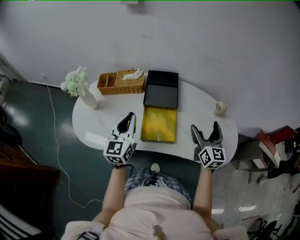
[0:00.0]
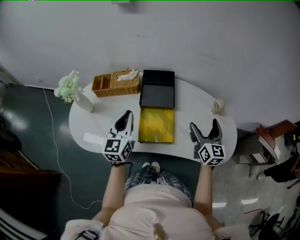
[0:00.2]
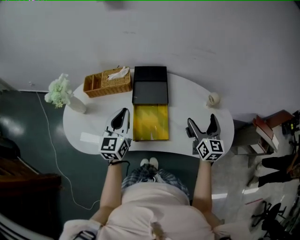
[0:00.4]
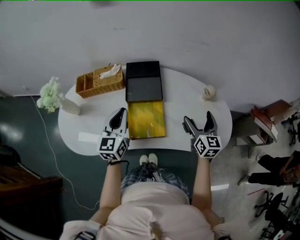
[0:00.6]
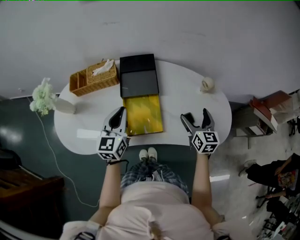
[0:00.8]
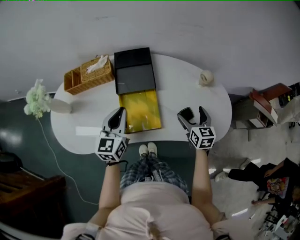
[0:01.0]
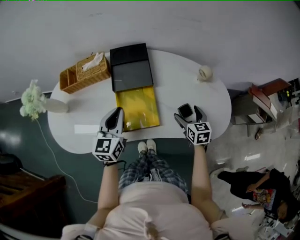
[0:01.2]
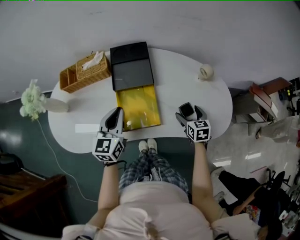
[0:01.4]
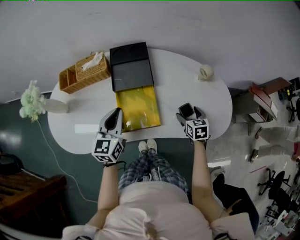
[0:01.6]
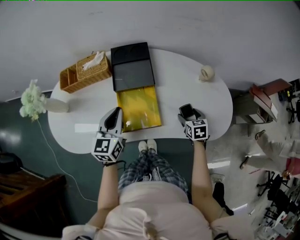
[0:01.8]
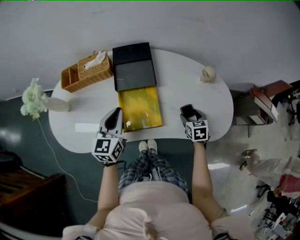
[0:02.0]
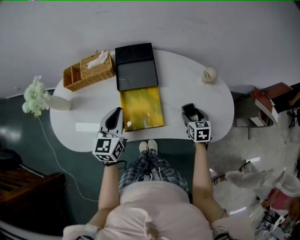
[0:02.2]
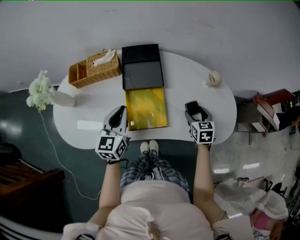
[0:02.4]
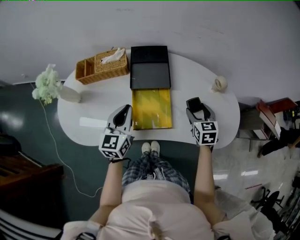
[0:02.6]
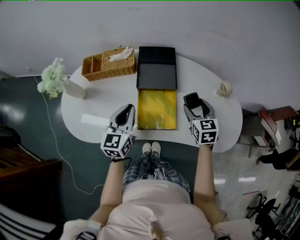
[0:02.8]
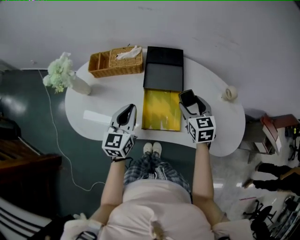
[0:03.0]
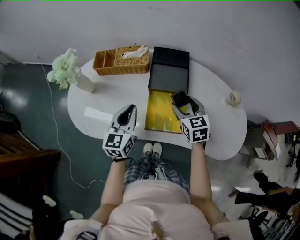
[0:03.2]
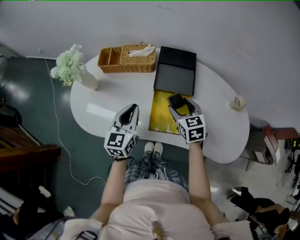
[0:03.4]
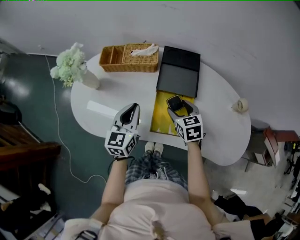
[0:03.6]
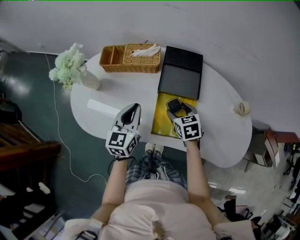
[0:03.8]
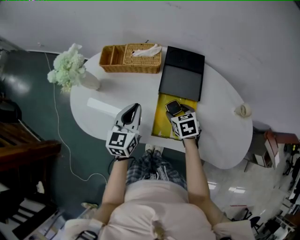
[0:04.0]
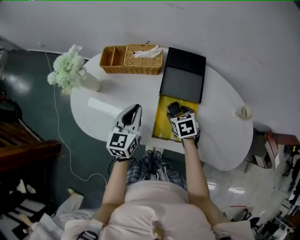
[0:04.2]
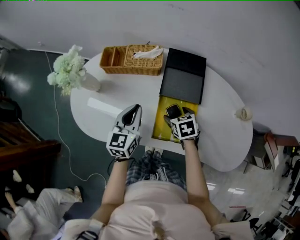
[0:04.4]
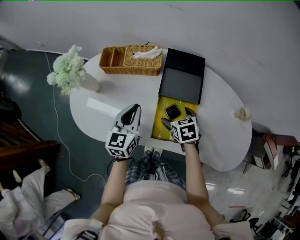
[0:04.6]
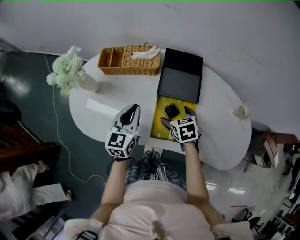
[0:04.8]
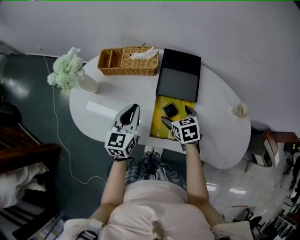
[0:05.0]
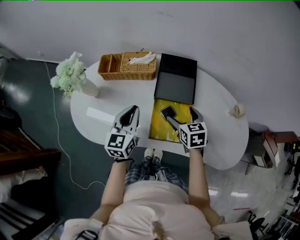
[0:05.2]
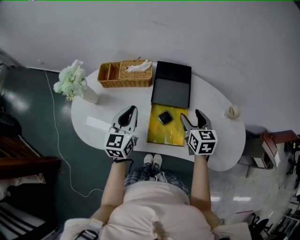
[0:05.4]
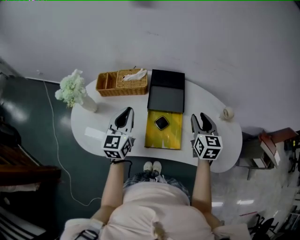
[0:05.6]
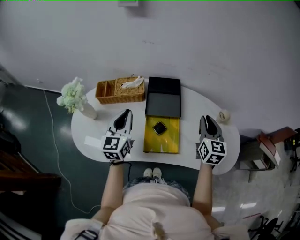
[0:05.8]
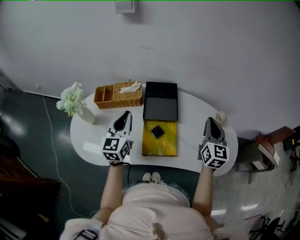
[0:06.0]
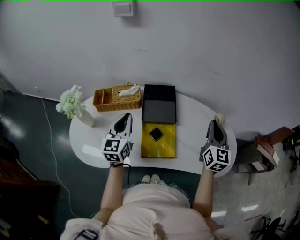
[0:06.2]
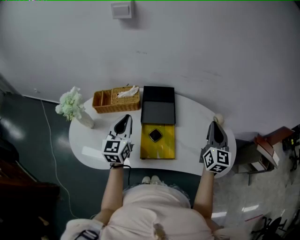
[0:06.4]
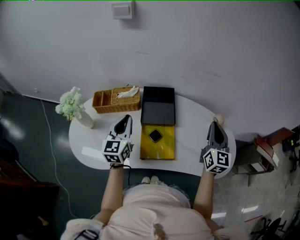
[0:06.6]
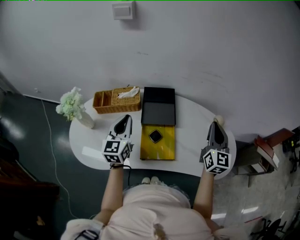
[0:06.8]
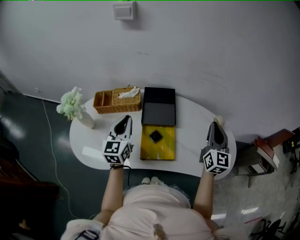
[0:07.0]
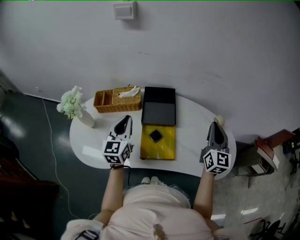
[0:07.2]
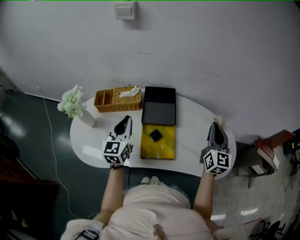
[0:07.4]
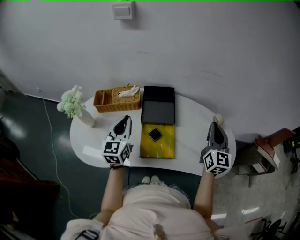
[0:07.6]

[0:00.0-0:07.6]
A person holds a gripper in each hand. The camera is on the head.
0:00.0 to 0:01.6: The left gripper shifts approximately 10 cm downward and to the right. Meanwhile the right gripper is displaced downward by approximately 20 cm, and points its fingers some 40 degrees further downward.
0:01.6 to 0:03.0: The left gripper shifts approximately 5 cm to the left. Meanwhile the right gripper shifts approximately 20 cm to the left, upward and forward, and swivels about 20 degrees.
0:03.0 to 0:04.6: The left gripper moves forward, some 5 cm, while the right gripper travels to the left and downward by approximately 15 cm, rotates roughly 30 degrees, and opens.
0:04.6 to 0:06.0: The left gripper goes approximately 10 cm upward; the right gripper shifts some 35 cm upward and to the right, angles its fingers upward, by some 50 degrees, and closes up.
0:06.0 to 0:07.6: The grippers stay close to where they were, moving slightly.

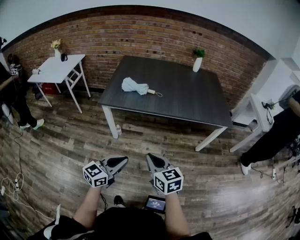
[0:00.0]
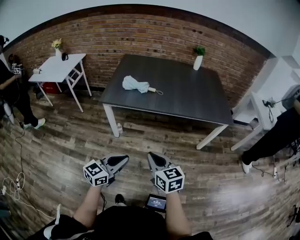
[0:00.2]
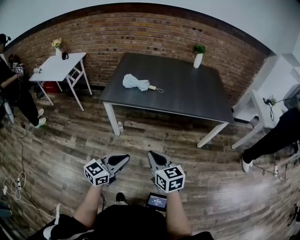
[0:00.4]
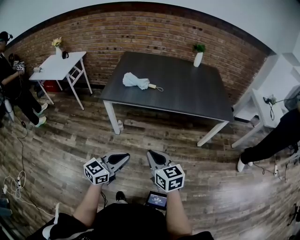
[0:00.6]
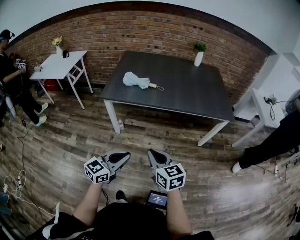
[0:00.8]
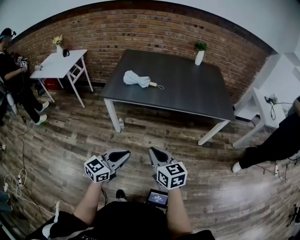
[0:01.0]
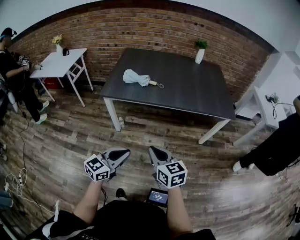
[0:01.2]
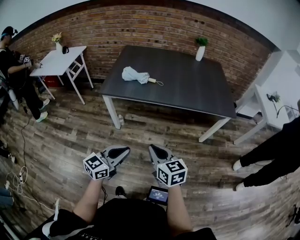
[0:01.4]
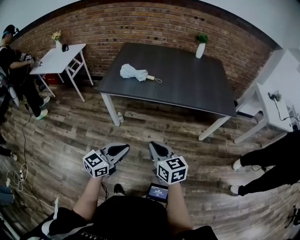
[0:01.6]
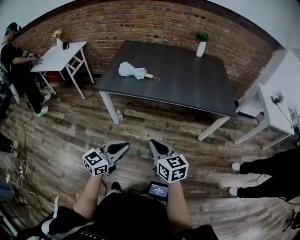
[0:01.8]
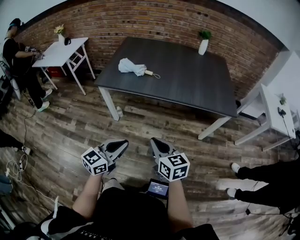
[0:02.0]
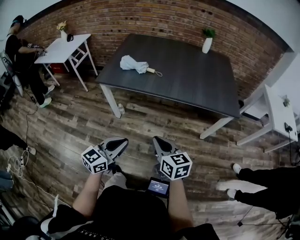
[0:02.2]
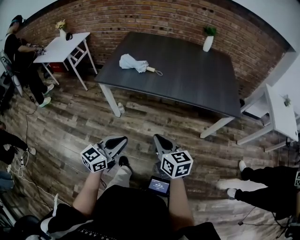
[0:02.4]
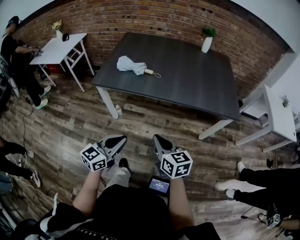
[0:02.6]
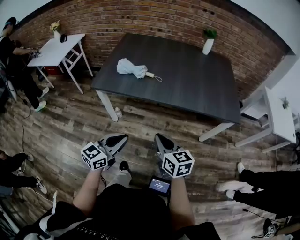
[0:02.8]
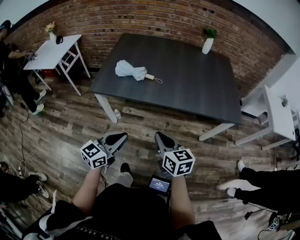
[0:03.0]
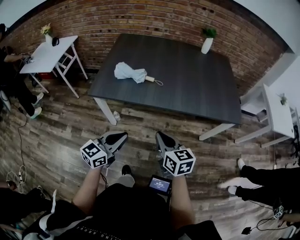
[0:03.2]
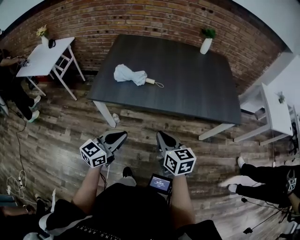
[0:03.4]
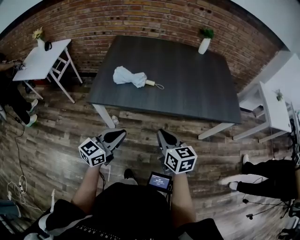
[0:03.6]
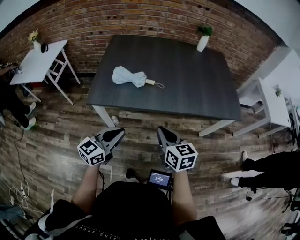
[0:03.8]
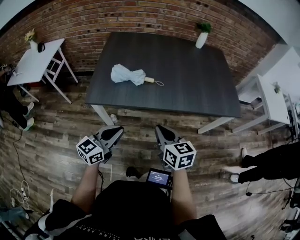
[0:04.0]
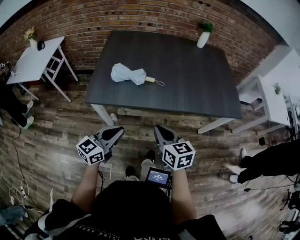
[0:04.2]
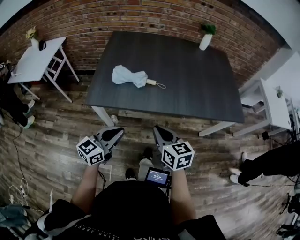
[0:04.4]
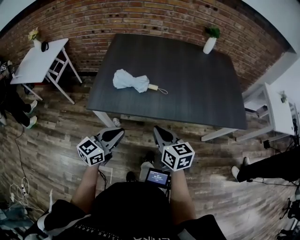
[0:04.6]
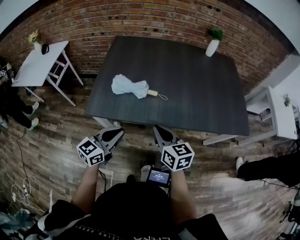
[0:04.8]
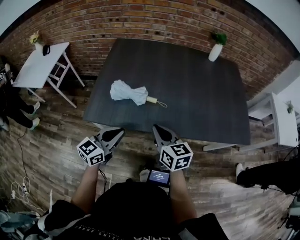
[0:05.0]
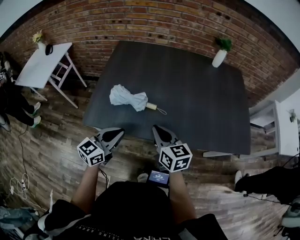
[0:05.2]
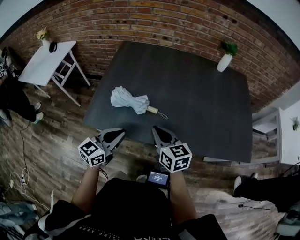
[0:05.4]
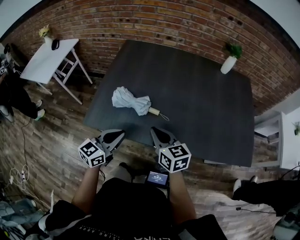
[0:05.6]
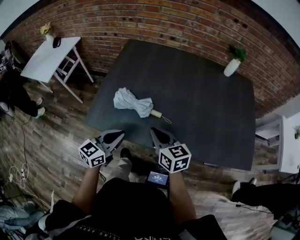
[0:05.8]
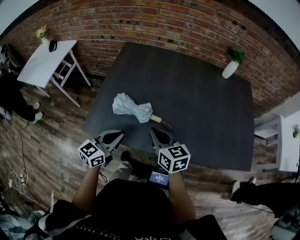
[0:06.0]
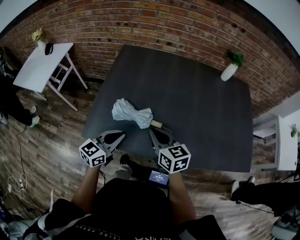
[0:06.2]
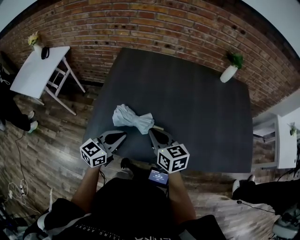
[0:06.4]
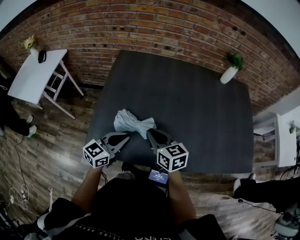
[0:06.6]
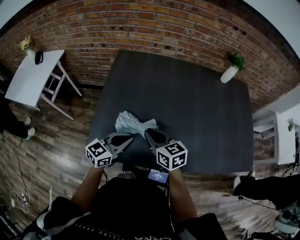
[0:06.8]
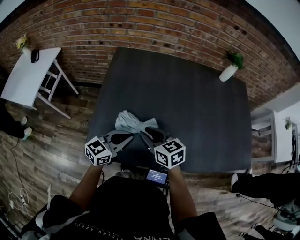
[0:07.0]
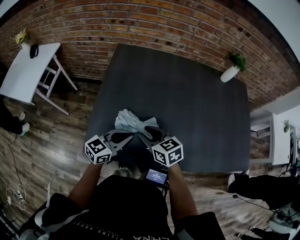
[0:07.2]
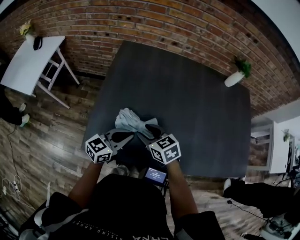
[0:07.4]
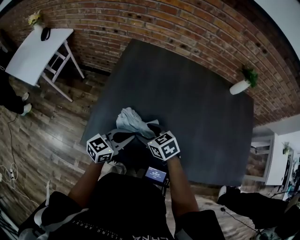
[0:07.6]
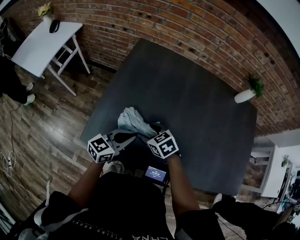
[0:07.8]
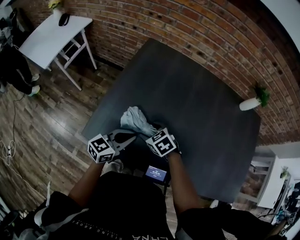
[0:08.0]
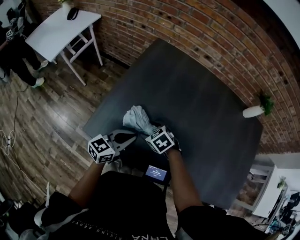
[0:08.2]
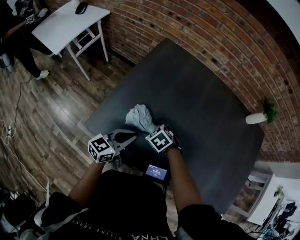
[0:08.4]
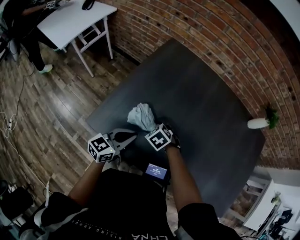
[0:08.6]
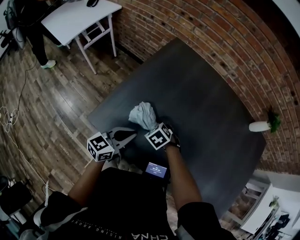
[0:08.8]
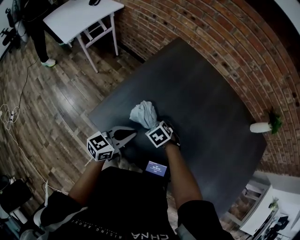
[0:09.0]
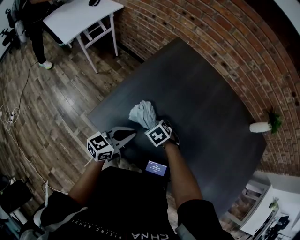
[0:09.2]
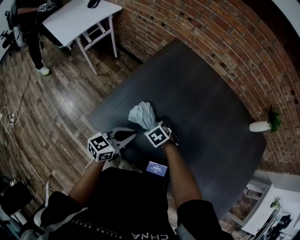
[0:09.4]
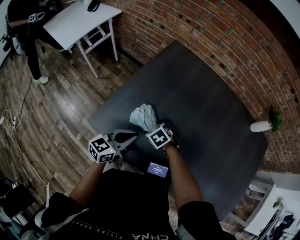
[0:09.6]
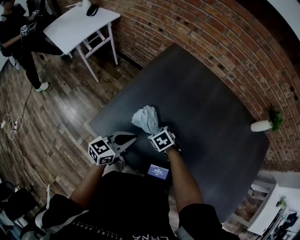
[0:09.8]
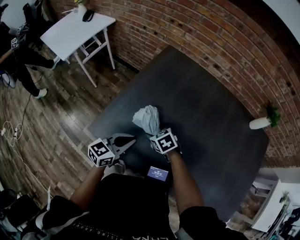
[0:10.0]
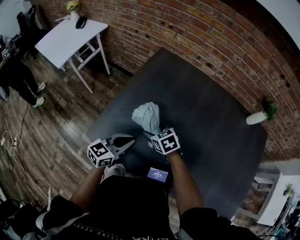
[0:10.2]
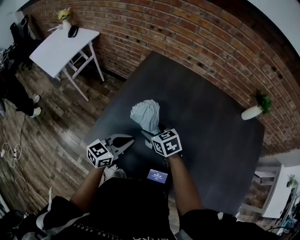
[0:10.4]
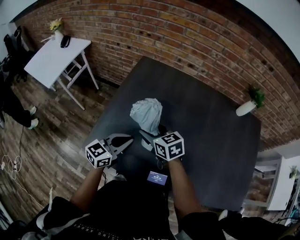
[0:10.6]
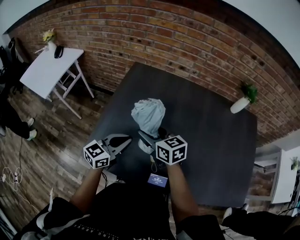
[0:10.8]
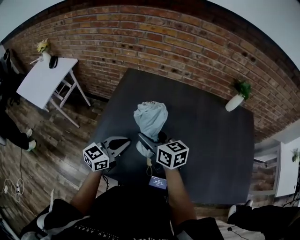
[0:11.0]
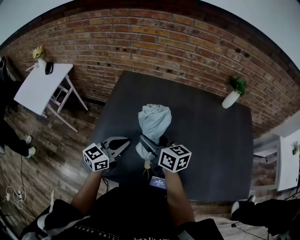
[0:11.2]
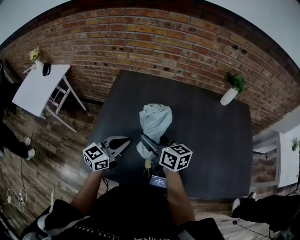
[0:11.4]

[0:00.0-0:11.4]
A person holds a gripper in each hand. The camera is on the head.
0:00.0 to 0:01.4: The grippers move only a little.
0:01.4 to 0:02.8: The left gripper shifts some 15 cm forward, while the right gripper heads forward and to the right, covering roughly 15 cm.
0:02.8 to 0:04.2: The two grippers go approximately 20 cm to the left and forward.
0:04.2 to 0:05.6: Both grippers move forward, about 20 cm.
0:05.6 to 0:07.2: The left gripper is displaced forward and to the left by some 15 cm, while the right gripper shifts some 20 cm to the left and forward, and opens.
0:07.2 to 0:08.6: The left gripper swivels approximately 30 degrees. Meanwhile the right gripper goes approximately 15 cm downward, tips its fingers downward by about 40 degrees, and opens up.
0:08.6 to 0:10.0: There are only small adjustments of the grippers.
0:10.0 to 0:11.4: The left gripper goes about 15 cm upward, to the right and forward, while the right gripper heads upward and to the right, covering about 25 cm, and points its fingers some 50 degrees further upward.

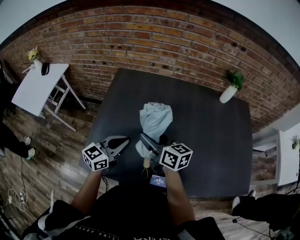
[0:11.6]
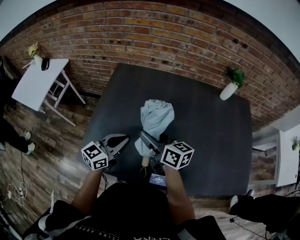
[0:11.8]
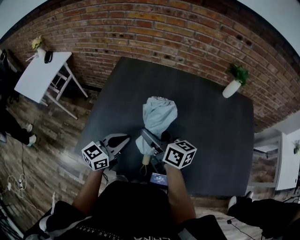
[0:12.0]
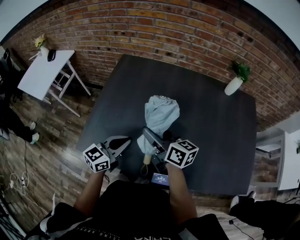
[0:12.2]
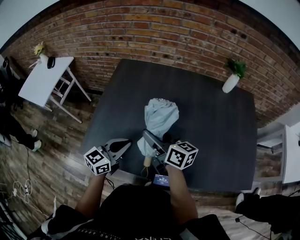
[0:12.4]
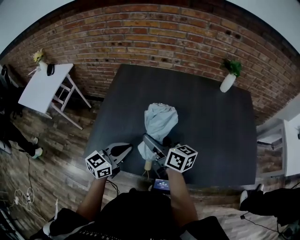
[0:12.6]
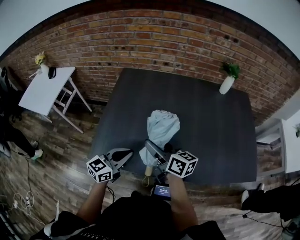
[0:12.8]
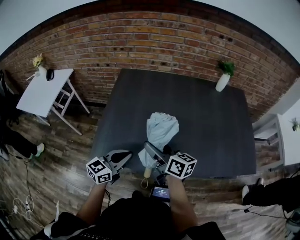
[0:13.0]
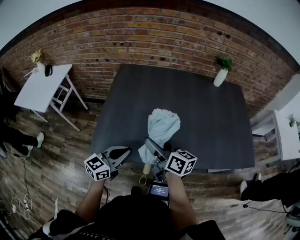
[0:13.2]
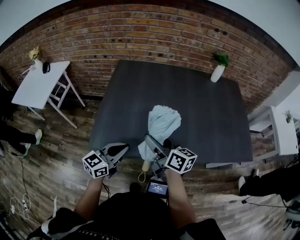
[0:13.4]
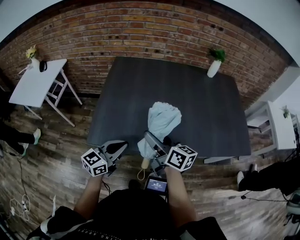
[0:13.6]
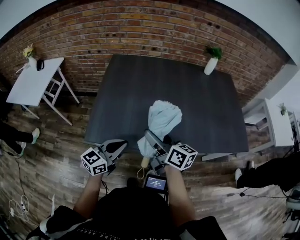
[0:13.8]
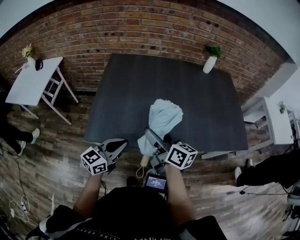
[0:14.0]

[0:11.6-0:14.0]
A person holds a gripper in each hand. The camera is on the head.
0:11.6 to 0:12.8: The grippers both shift backward by roughly 10 cm.
0:12.8 to 0:14.0: The grippers both shift backward by roughly 10 cm.

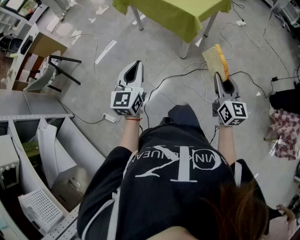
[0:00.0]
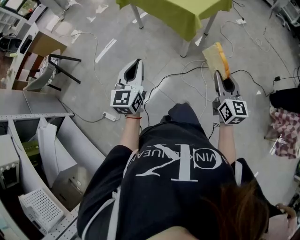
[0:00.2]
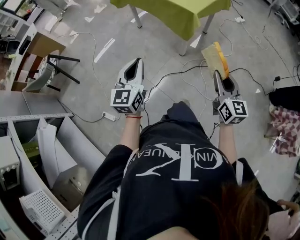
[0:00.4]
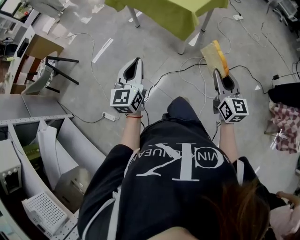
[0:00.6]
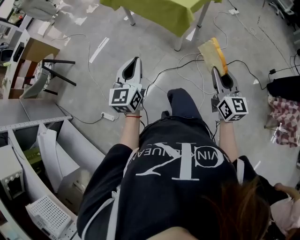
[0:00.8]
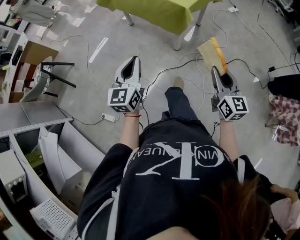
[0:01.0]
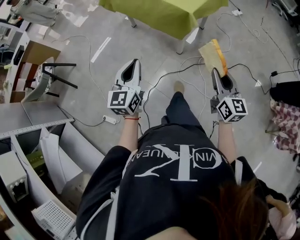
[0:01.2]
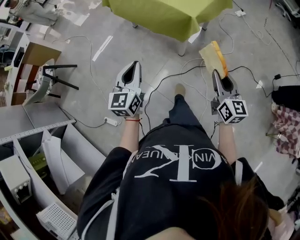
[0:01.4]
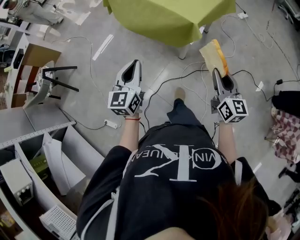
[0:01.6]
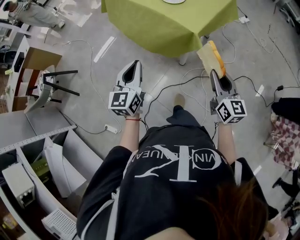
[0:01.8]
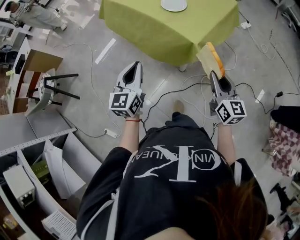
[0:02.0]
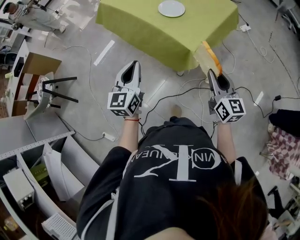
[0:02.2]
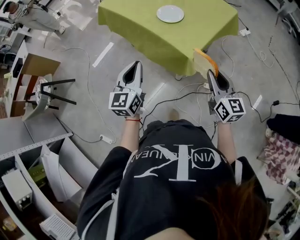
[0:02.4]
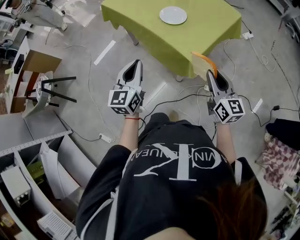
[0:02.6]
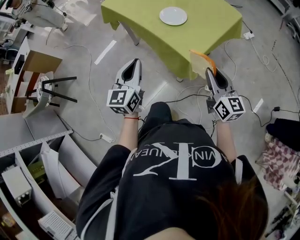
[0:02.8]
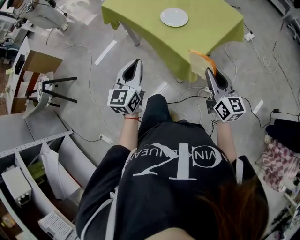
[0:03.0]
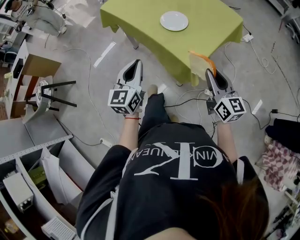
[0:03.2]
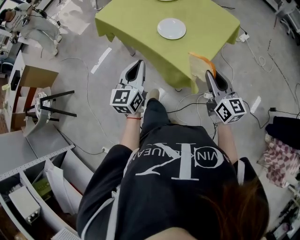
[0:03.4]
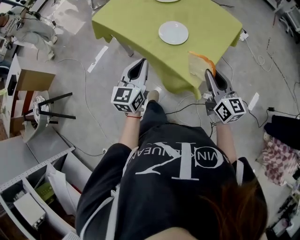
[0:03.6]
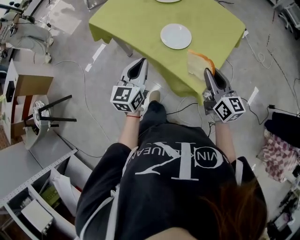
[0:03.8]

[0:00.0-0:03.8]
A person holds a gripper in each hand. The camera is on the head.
0:00.0 to 0:01.2: The two grippers go about 5 cm forward.
0:01.2 to 0:02.6: Both grippers travel together forward, about 30 cm.
0:02.6 to 0:03.8: Both grippers move forward, roughly 20 cm.
